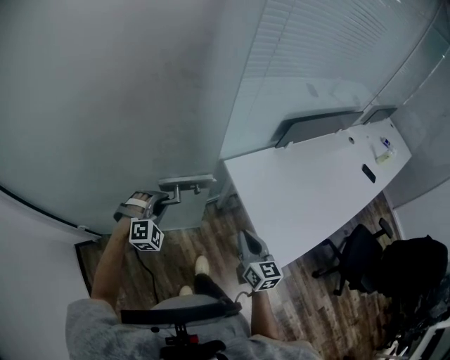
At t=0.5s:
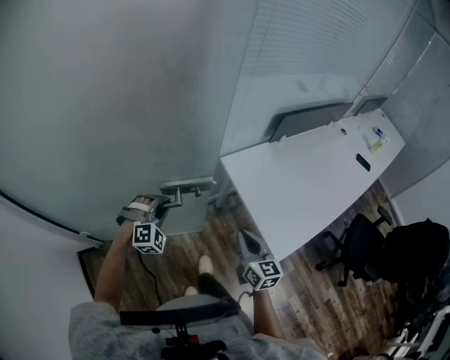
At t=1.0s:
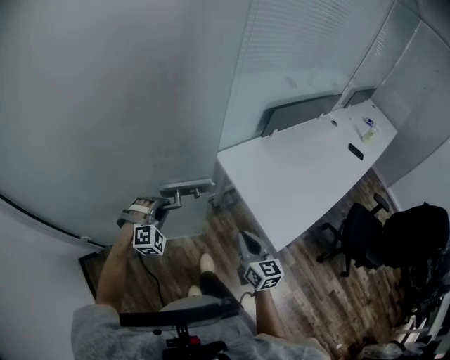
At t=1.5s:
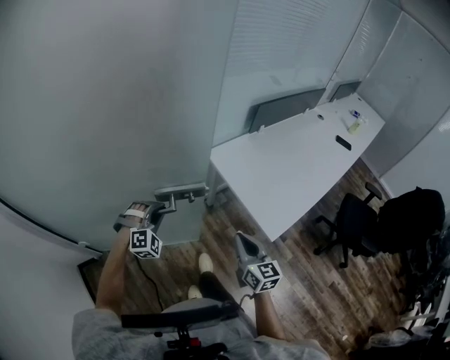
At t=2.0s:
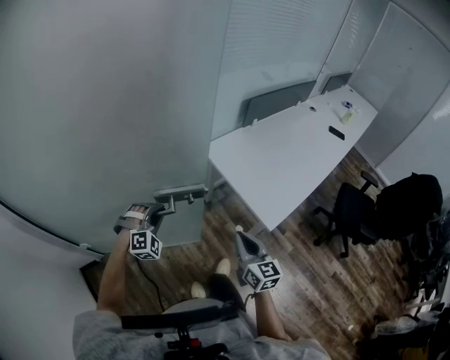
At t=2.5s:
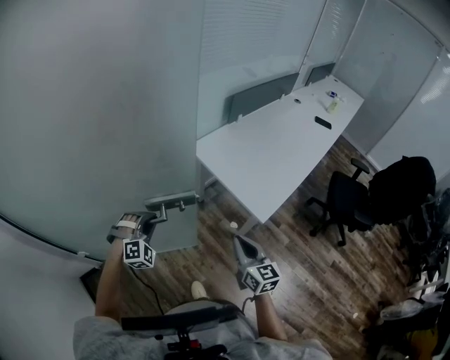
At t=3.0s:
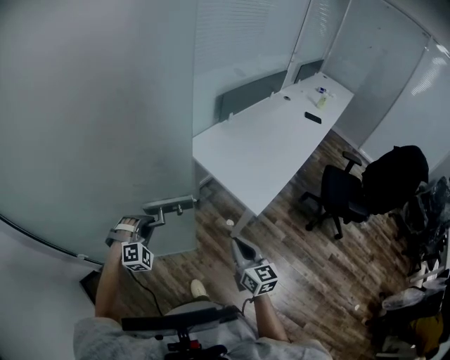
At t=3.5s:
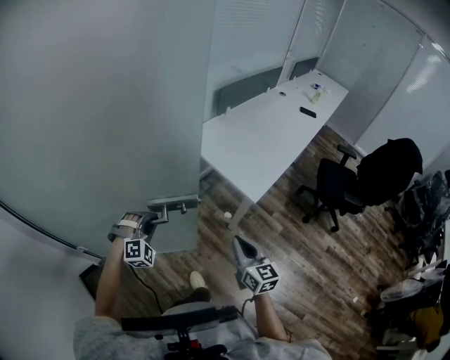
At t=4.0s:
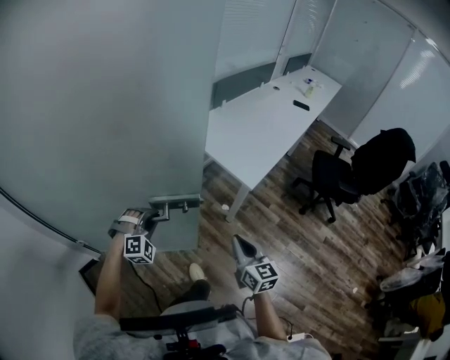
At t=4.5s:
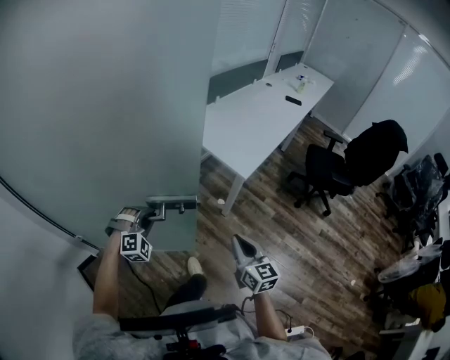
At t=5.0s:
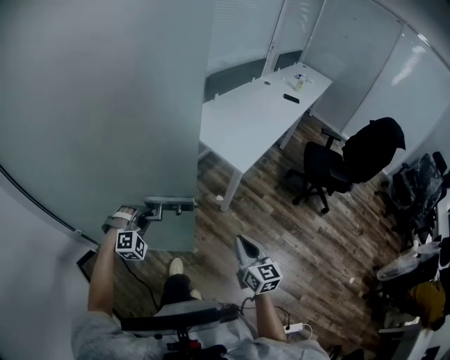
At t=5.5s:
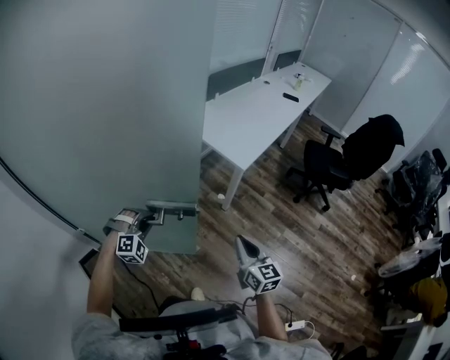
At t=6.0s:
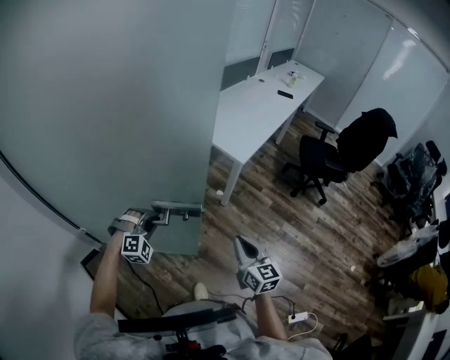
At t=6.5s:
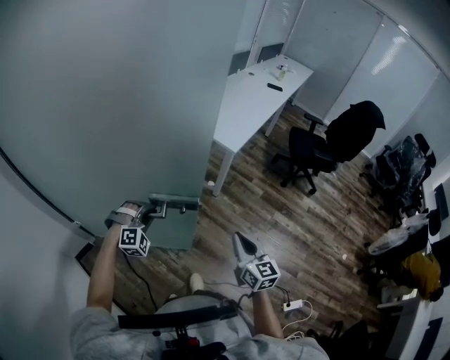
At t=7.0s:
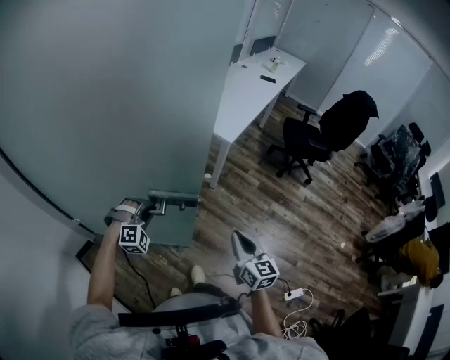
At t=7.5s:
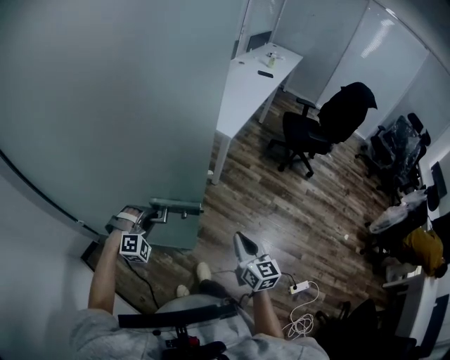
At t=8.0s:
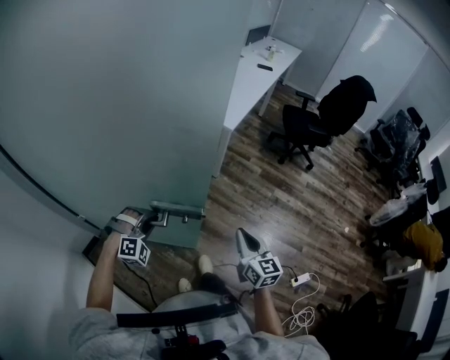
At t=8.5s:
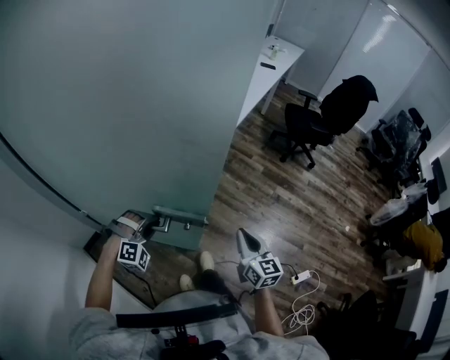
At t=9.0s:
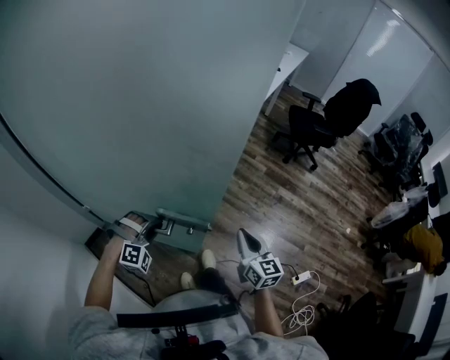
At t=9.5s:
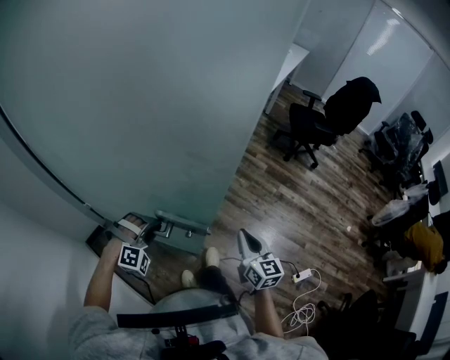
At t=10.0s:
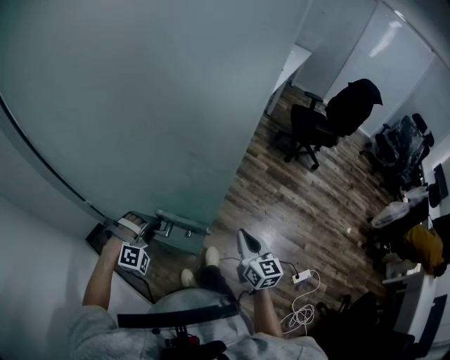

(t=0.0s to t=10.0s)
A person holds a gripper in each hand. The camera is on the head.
t=0.0s - t=2.0s: Both grippers travel together backward, about 15 cm.
t=2.0s - t=4.0s: The two grippers go roughly 20 cm backward.
t=4.0s - t=6.0s: The grippers both shift backward by some 15 cm.
t=6.0s - t=8.0s: The grippers both shift backward by approximately 15 cm.
t=8.0s - t=10.0s: The right gripper goes about 5 cm backward. The left gripper shifts some 10 cm backward.

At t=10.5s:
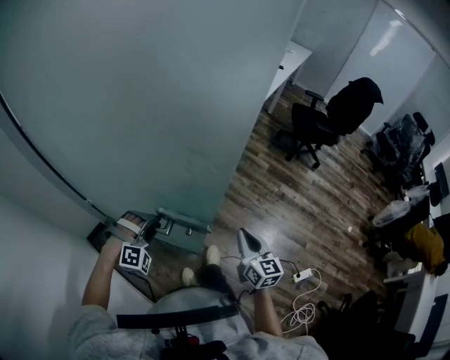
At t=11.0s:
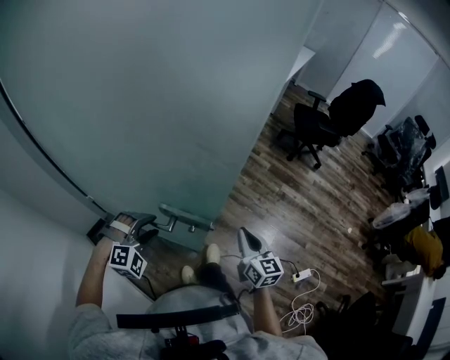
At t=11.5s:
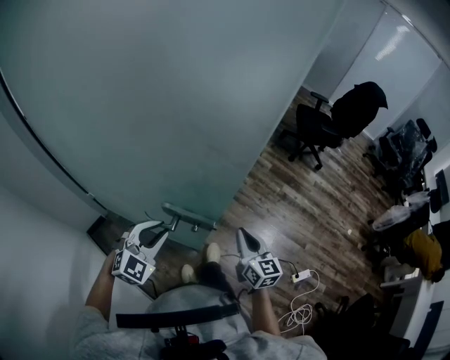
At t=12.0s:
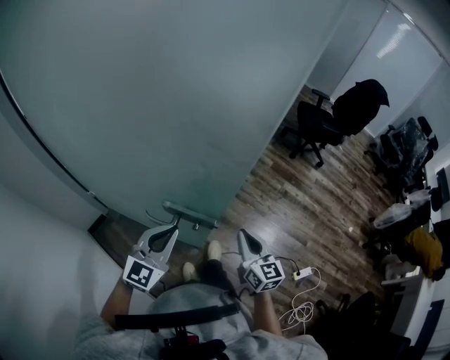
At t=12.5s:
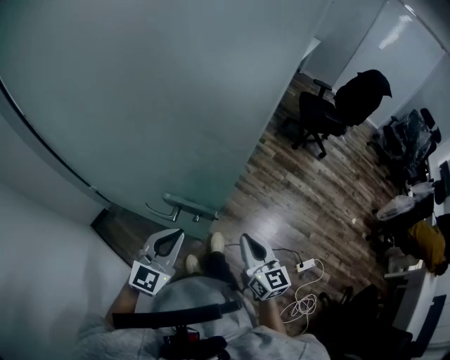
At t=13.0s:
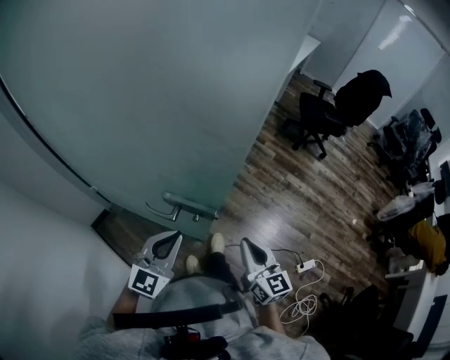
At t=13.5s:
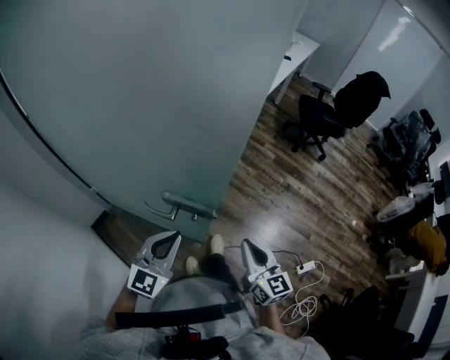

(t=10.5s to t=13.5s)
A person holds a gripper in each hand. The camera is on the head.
t=10.5s - t=12.0s: The left gripper travels upward by approximately 10 cm, rolls counterclockwise, seen from behind, by roughly 70 degrees, and closes its fingers.
t=12.0s - t=13.5s: The right gripper moves backward, approximately 5 cm.

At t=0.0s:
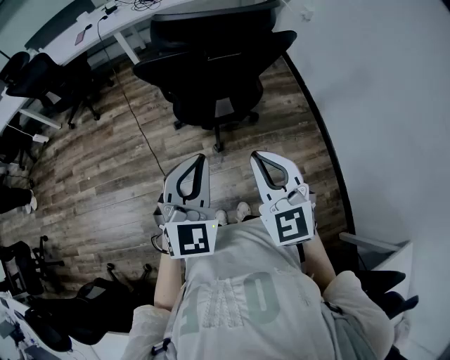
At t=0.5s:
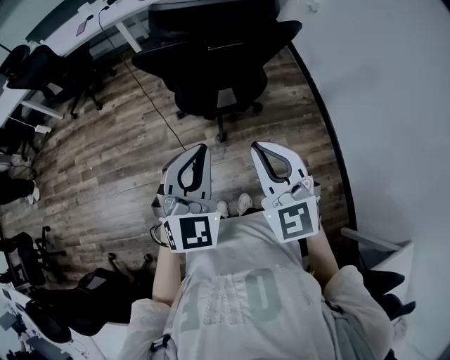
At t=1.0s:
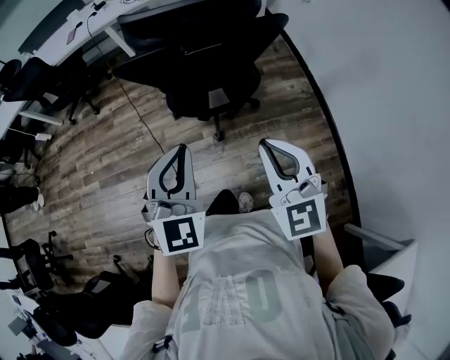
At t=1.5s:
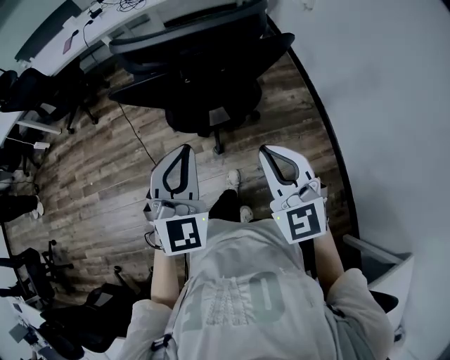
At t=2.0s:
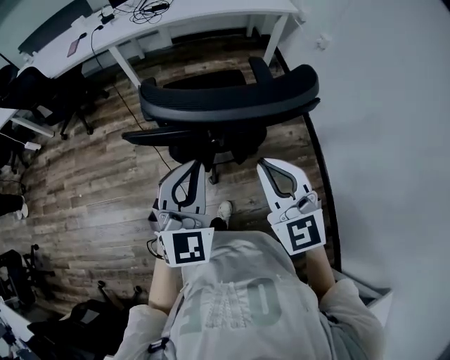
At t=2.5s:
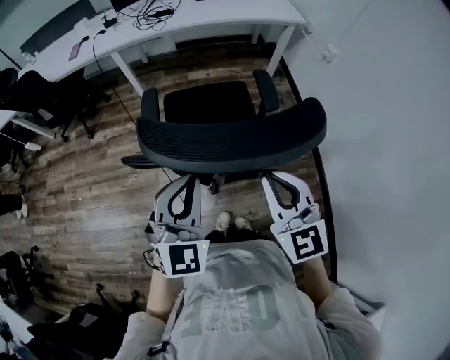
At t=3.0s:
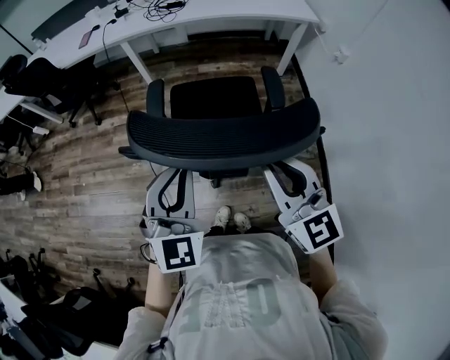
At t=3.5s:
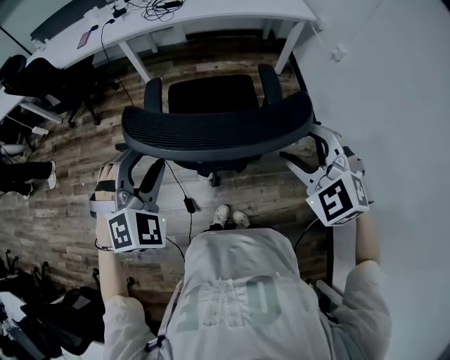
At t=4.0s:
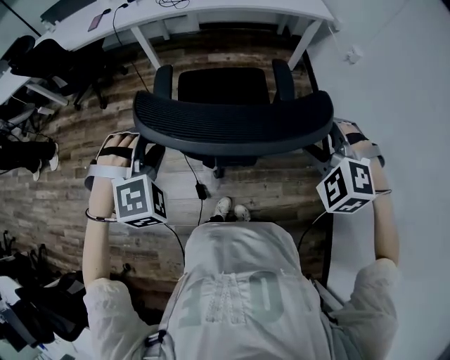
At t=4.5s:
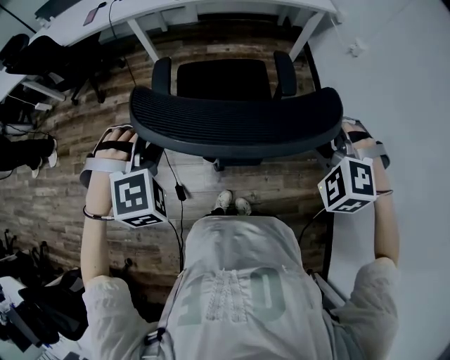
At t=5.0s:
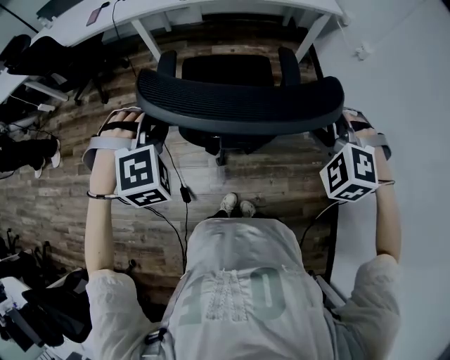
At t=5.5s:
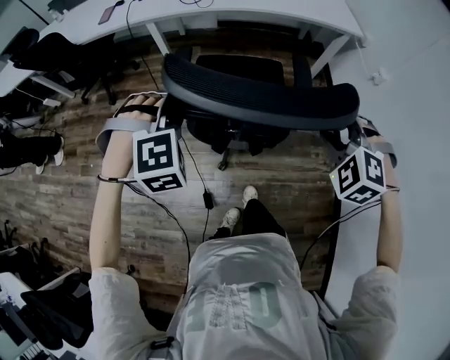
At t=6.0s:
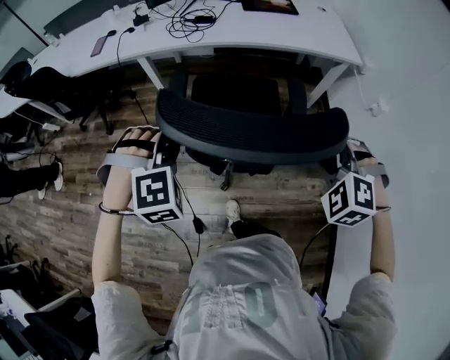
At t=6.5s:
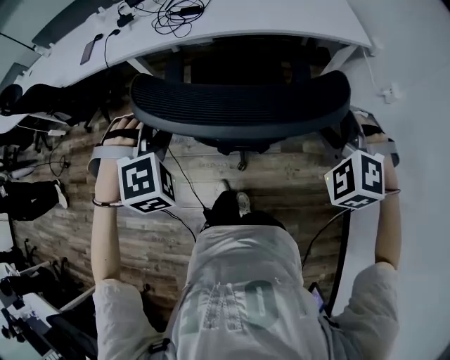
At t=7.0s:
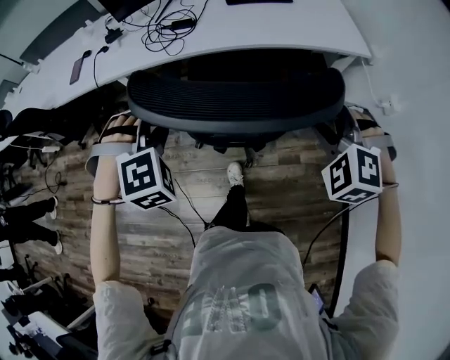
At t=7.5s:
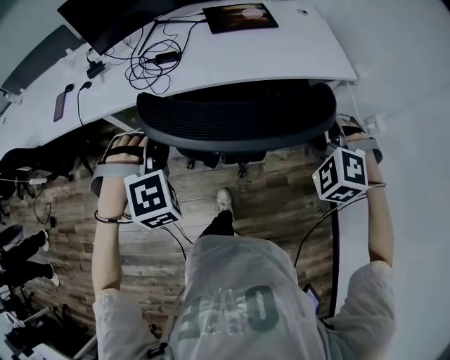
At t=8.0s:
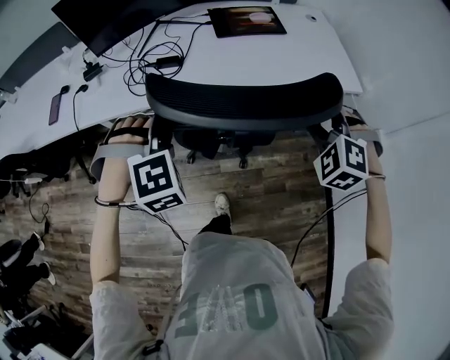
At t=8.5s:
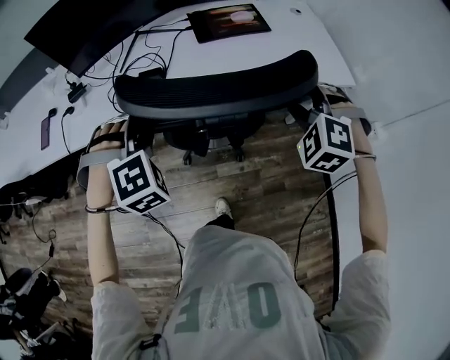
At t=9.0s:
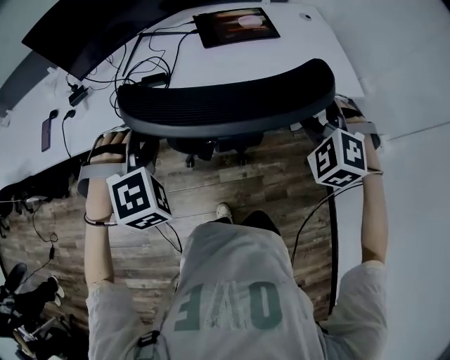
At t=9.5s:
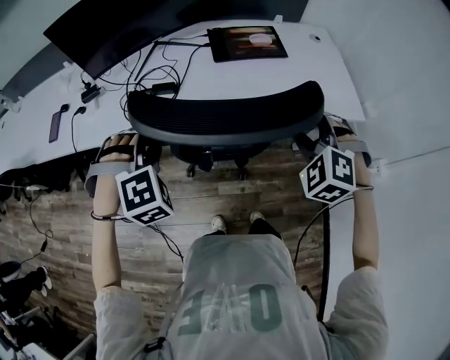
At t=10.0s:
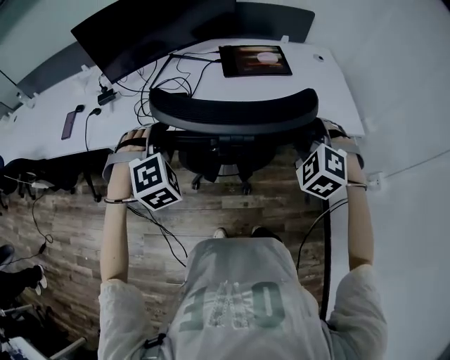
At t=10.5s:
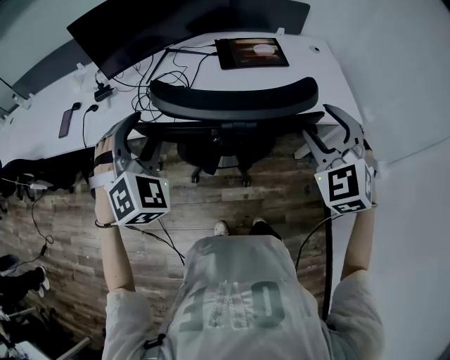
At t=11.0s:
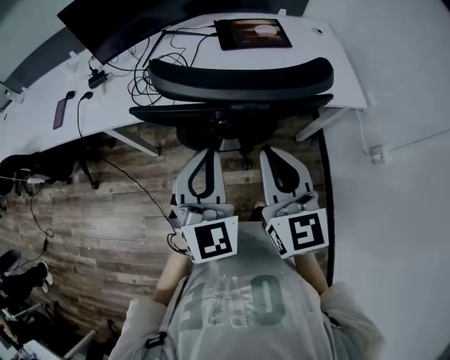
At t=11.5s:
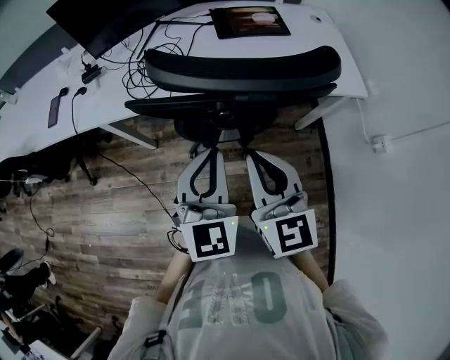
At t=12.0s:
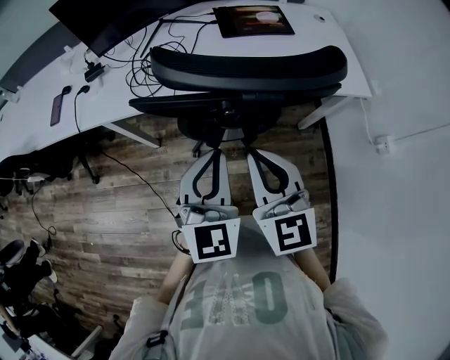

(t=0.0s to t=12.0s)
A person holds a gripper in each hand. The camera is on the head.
t=0.0s - t=2.0s: Both grippers travel together forward, some 20 cm.
t=2.0s - t=4.0s: The left gripper is displaced forward and to the left by about 10 cm, tips its fingers downward by roughly 40 degrees, and opens its fingers. Meanwhile the right gripper heads to the right and forward, covering about 15 cm, tilts its fingers approximately 40 degrees downward, and opens its fingers.
t=4.0s - t=6.0s: The two grippers go approximately 25 cm forward.
t=6.0s - t=8.0s: The grippers both shift forward by approximately 35 cm.
t=8.0s - t=10.0s: Both grippers travel together forward, some 10 cm.
t=10.0s - t=12.0s: The right gripper goes about 20 cm to the left and backward, rolls clockwise, seen from behind, by roughly 50 degrees, and closes its fingers; the left gripper goes roughly 15 cm backward and to the right, rotates around the line of its fingers by roughly 50 degrees, counterclockwise from behind, and closes up.

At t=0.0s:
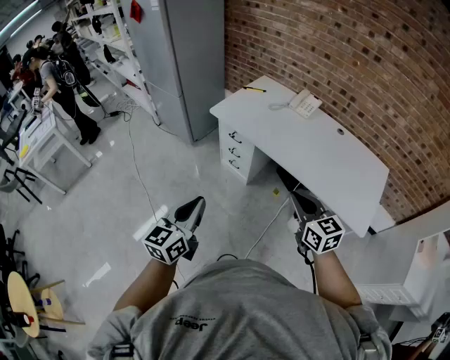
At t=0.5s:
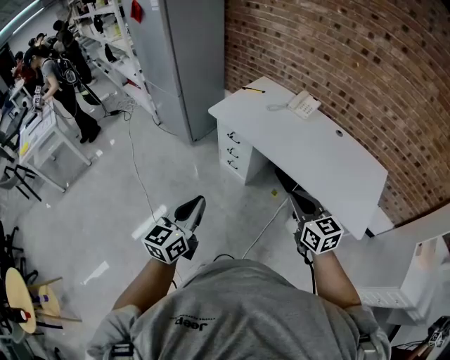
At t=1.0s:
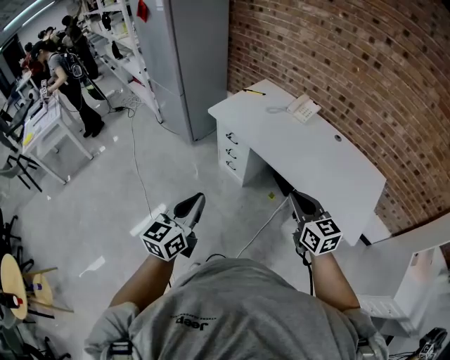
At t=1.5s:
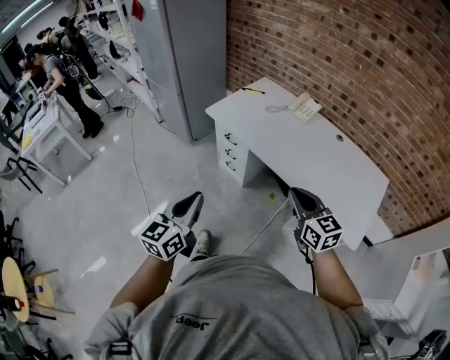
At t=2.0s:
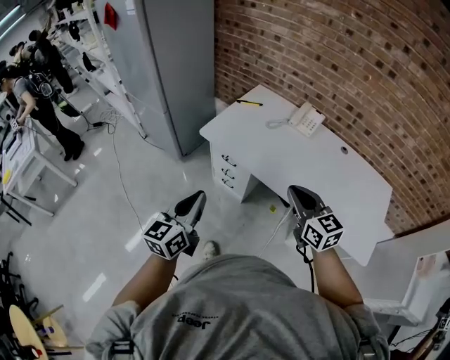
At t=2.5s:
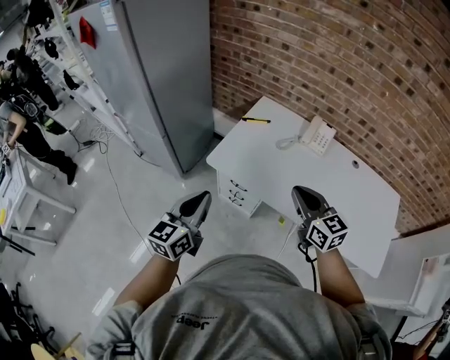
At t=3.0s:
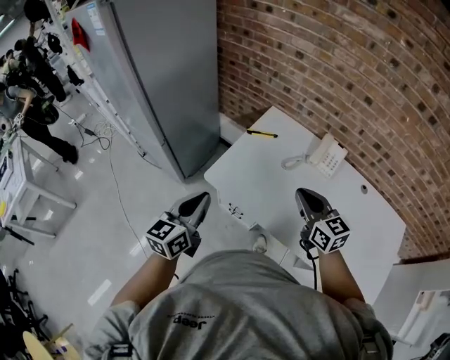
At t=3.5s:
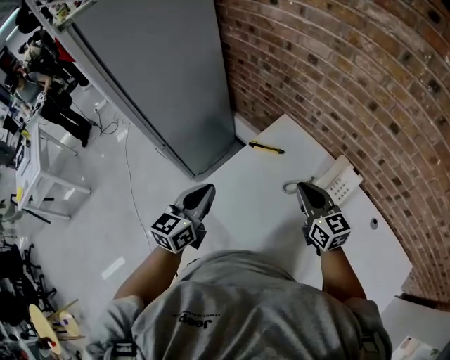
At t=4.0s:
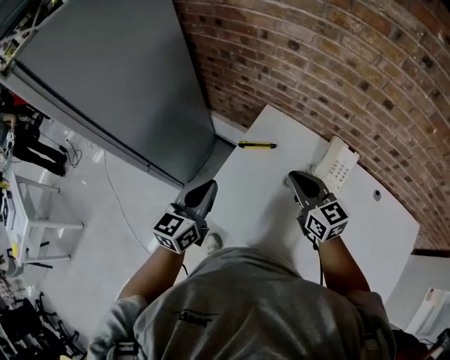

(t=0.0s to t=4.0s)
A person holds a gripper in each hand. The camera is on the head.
t=0.0s - t=2.0s: Both grippers travel together forward, some 20 cm.
t=2.0s - t=4.0s: The pair of grippers is taken forward, some 50 cm.
